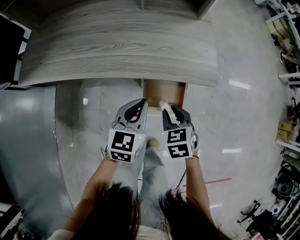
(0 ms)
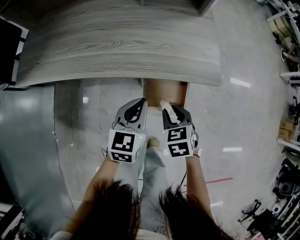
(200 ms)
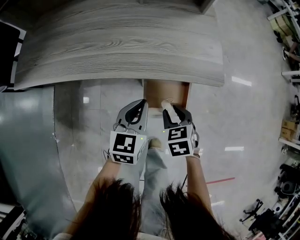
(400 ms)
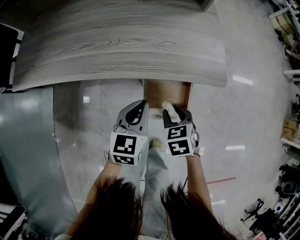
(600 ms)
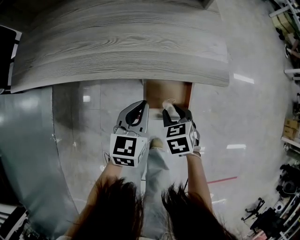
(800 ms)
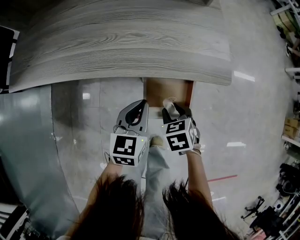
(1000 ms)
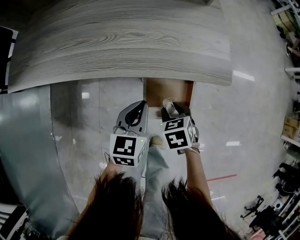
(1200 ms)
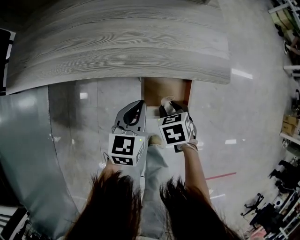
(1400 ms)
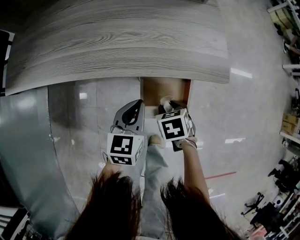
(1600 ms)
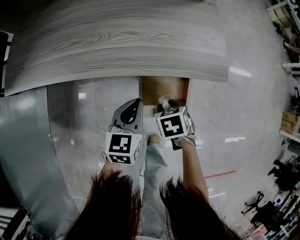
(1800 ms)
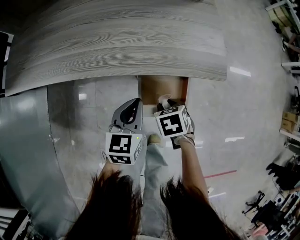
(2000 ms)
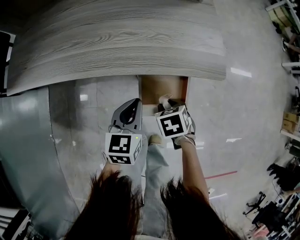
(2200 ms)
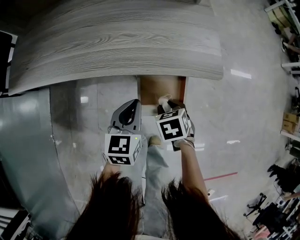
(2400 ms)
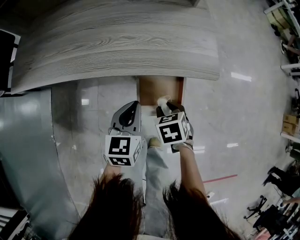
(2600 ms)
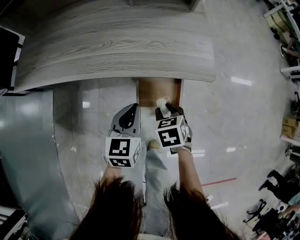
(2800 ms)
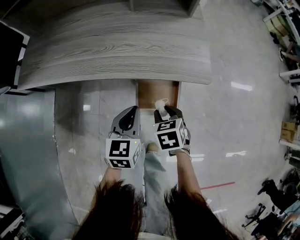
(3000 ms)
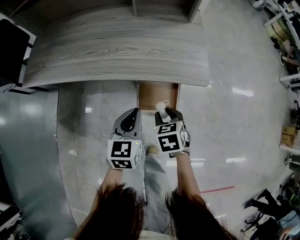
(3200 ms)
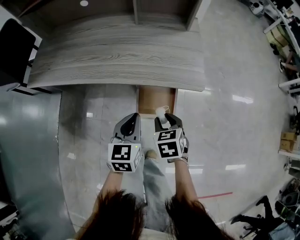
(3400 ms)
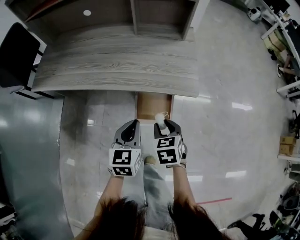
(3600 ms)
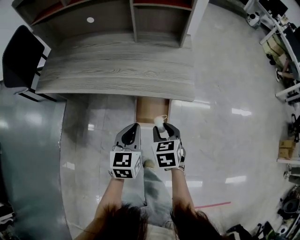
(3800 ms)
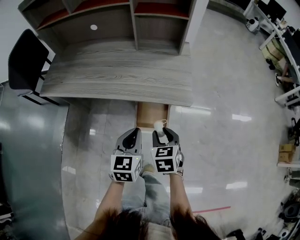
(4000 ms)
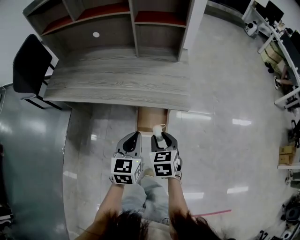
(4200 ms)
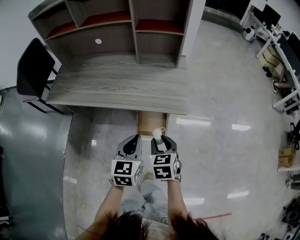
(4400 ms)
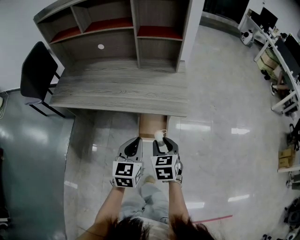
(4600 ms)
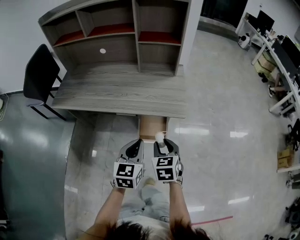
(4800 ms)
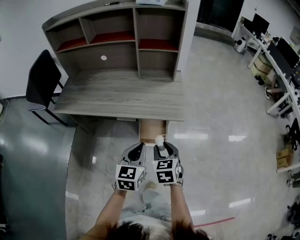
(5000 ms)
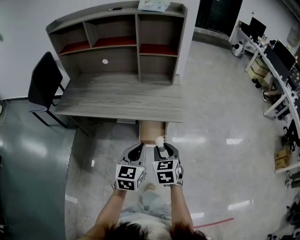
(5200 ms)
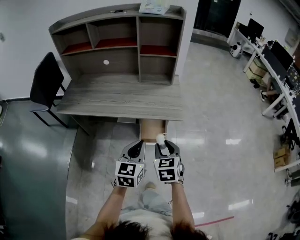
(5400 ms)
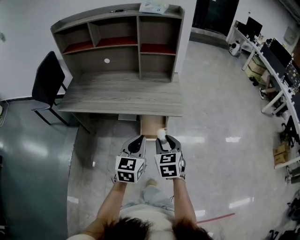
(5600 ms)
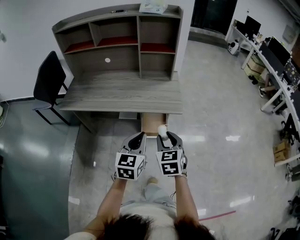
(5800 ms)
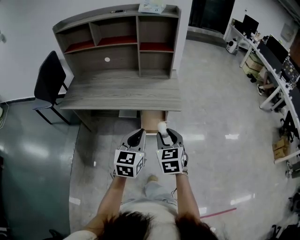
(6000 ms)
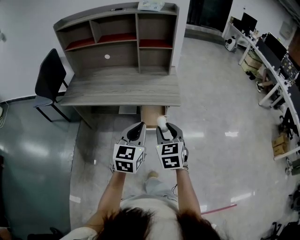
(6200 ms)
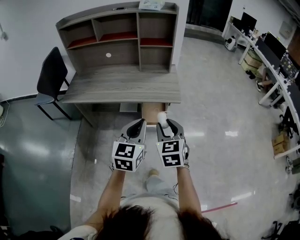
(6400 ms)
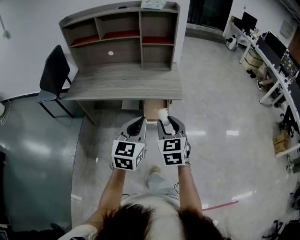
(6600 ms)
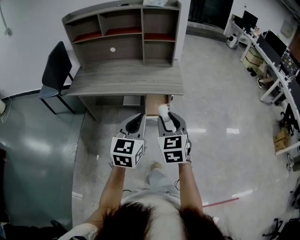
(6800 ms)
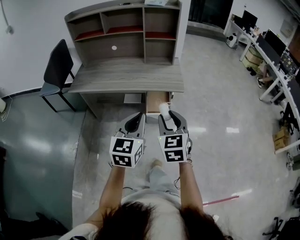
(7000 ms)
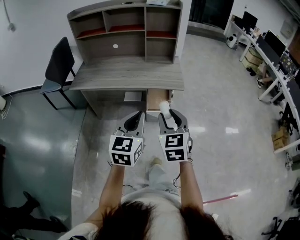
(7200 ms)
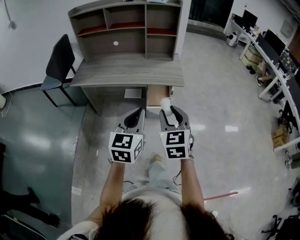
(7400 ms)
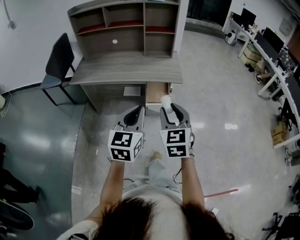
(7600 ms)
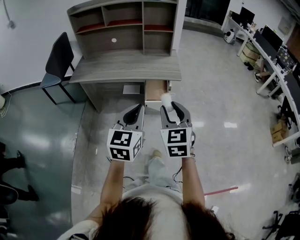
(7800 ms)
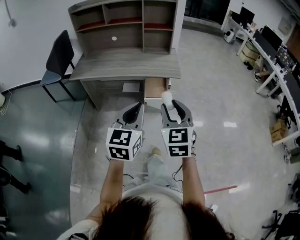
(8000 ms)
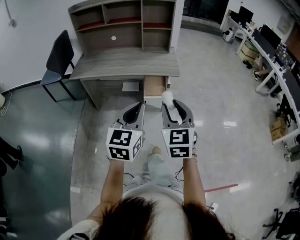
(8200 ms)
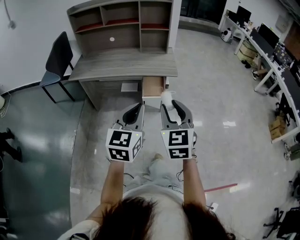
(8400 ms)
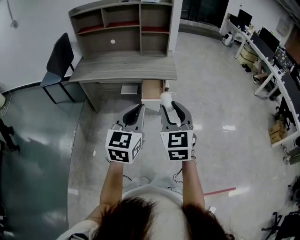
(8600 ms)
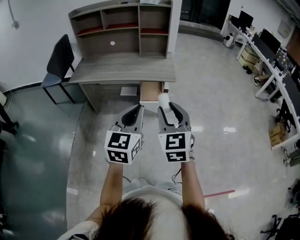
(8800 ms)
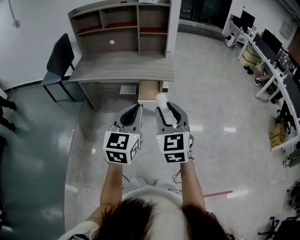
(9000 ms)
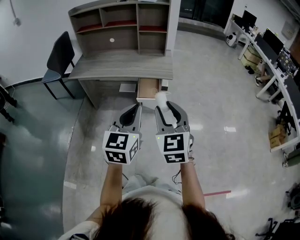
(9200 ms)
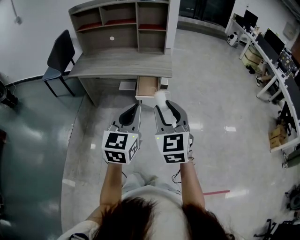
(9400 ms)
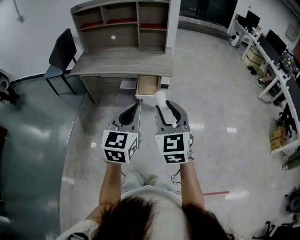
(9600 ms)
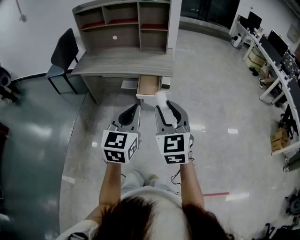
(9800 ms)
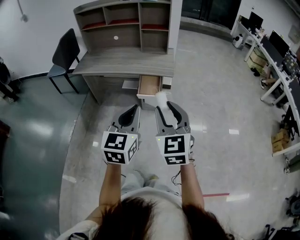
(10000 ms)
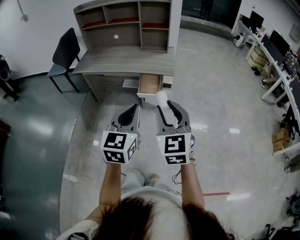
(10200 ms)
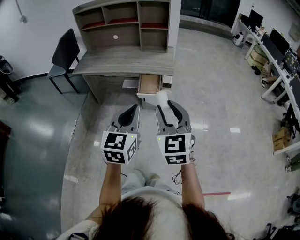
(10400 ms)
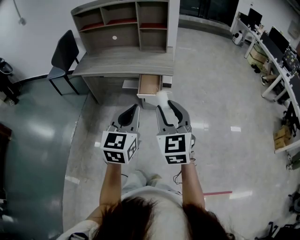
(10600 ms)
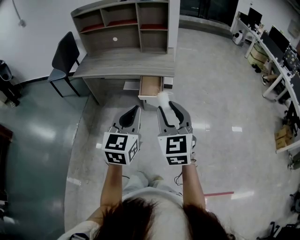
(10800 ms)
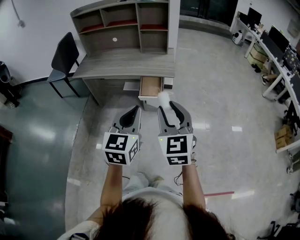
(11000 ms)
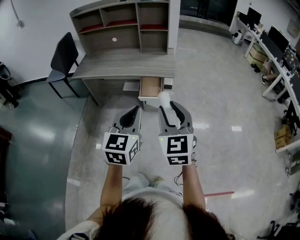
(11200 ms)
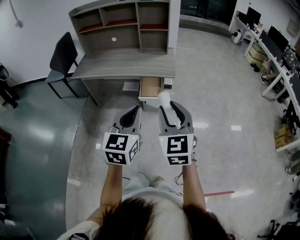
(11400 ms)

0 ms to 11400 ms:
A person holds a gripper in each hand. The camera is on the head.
0 ms to 1400 ms: The two grippers go approximately 10 cm downward.
1400 ms to 2800 ms: The right gripper changes place by roughly 5 cm.
2800 ms to 4200 ms: The left gripper shifts some 15 cm upward and backward. Meanwhile the right gripper travels upward by some 15 cm.
4200 ms to 5600 ms: The two grippers go some 15 cm upward and backward.
5600 ms to 7200 ms: Both grippers move backward and upward, roughly 20 cm.
7200 ms to 8600 ms: Both grippers move backward, approximately 10 cm.
8600 ms to 10000 ms: Both grippers travel together to the right, some 10 cm.
10000 ms to 11400 ms: There are only small adjustments of the grippers.

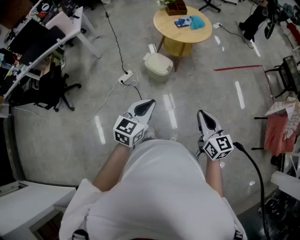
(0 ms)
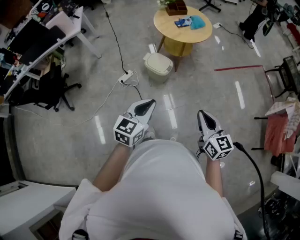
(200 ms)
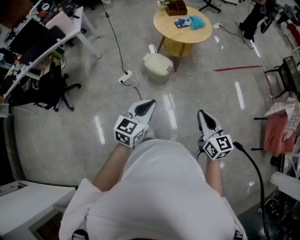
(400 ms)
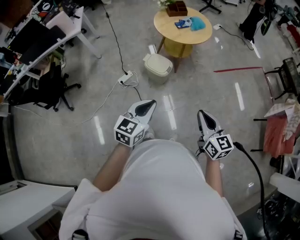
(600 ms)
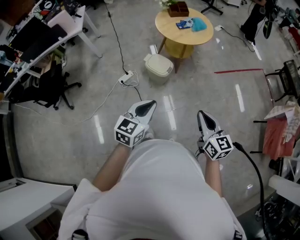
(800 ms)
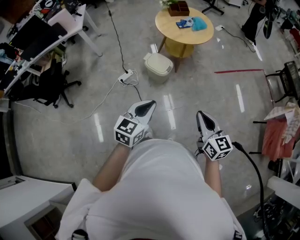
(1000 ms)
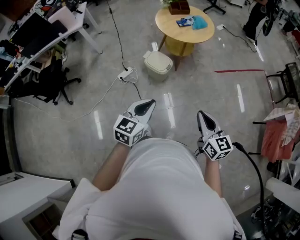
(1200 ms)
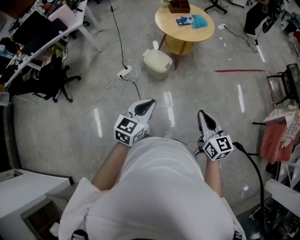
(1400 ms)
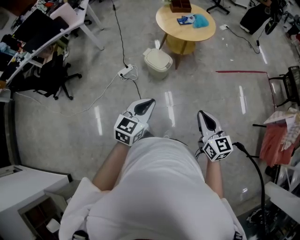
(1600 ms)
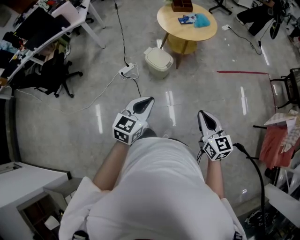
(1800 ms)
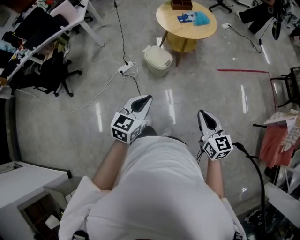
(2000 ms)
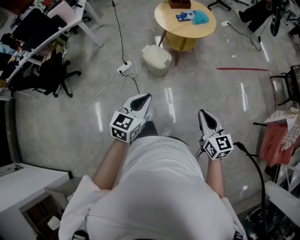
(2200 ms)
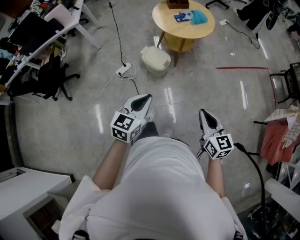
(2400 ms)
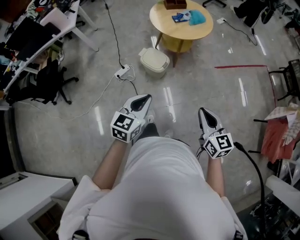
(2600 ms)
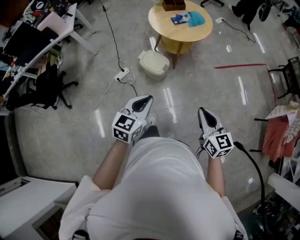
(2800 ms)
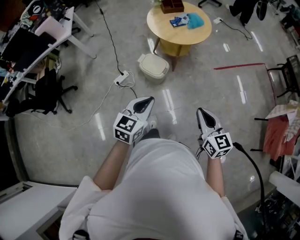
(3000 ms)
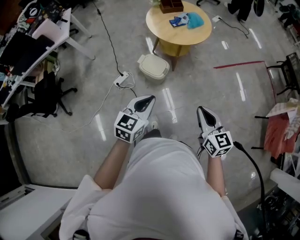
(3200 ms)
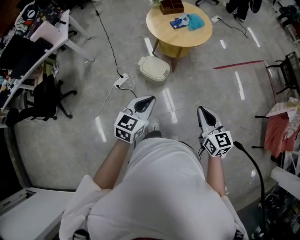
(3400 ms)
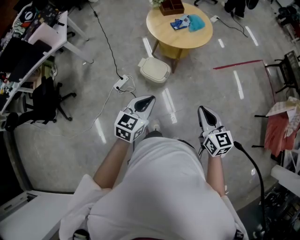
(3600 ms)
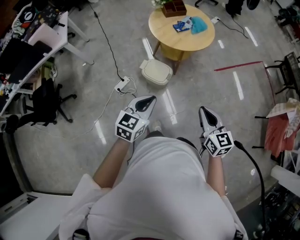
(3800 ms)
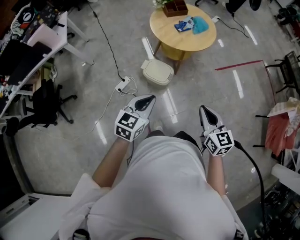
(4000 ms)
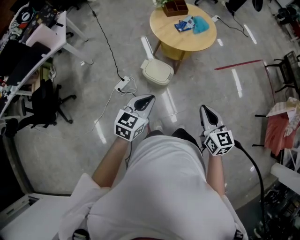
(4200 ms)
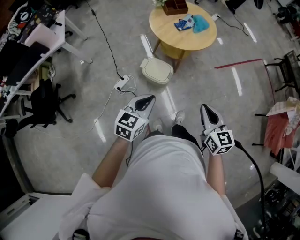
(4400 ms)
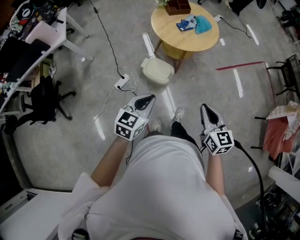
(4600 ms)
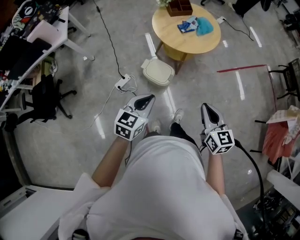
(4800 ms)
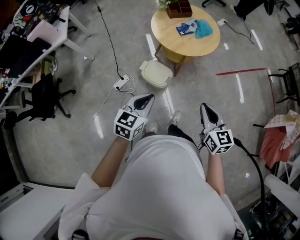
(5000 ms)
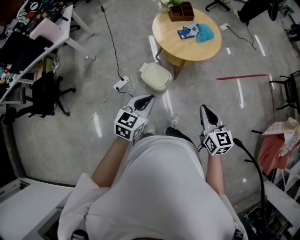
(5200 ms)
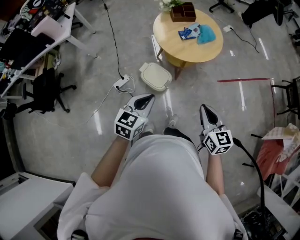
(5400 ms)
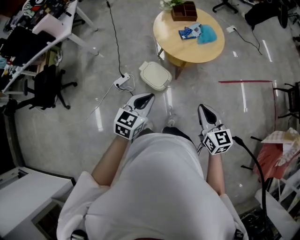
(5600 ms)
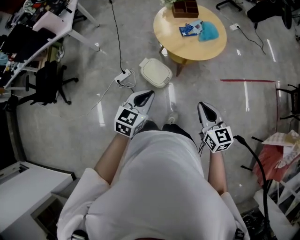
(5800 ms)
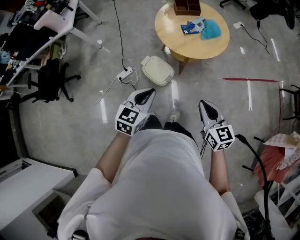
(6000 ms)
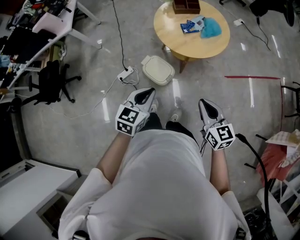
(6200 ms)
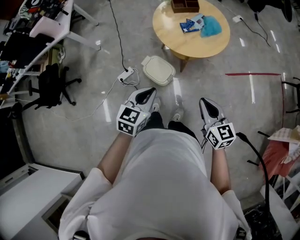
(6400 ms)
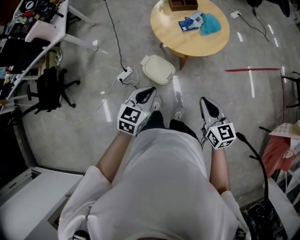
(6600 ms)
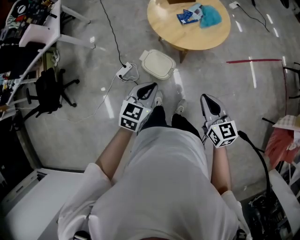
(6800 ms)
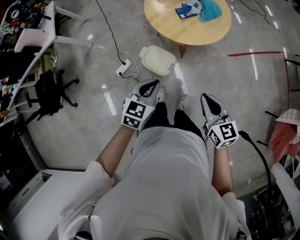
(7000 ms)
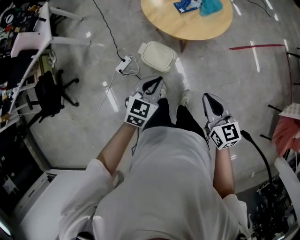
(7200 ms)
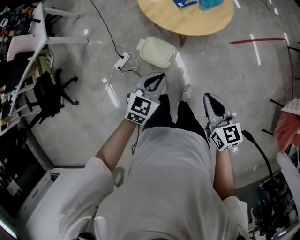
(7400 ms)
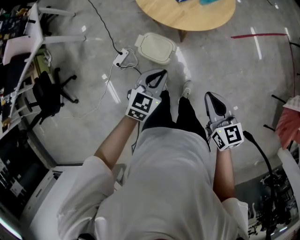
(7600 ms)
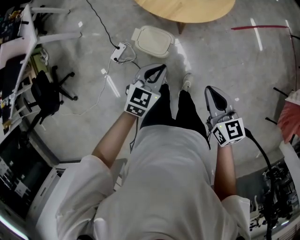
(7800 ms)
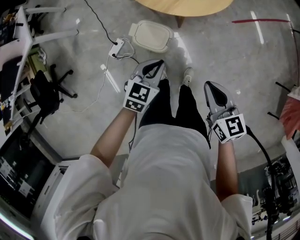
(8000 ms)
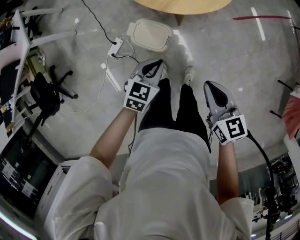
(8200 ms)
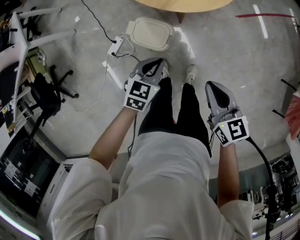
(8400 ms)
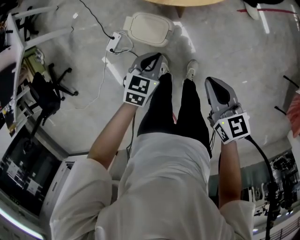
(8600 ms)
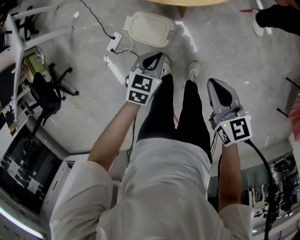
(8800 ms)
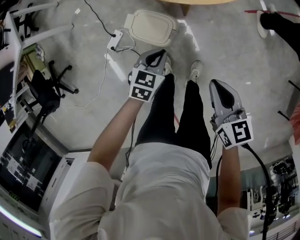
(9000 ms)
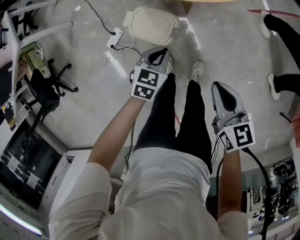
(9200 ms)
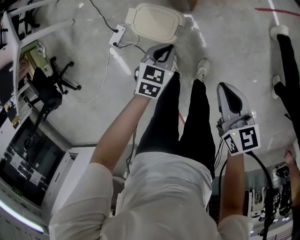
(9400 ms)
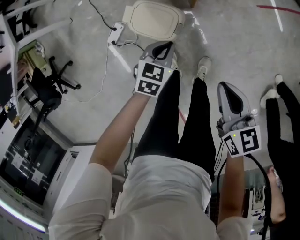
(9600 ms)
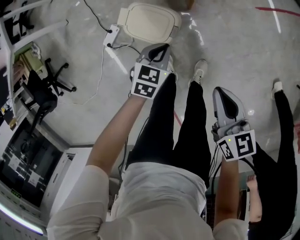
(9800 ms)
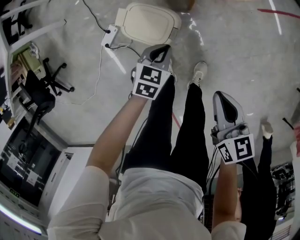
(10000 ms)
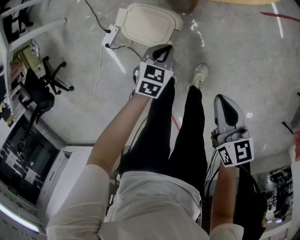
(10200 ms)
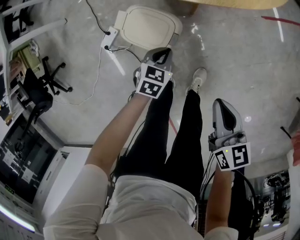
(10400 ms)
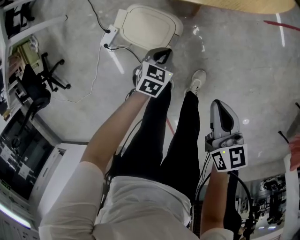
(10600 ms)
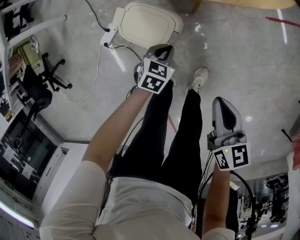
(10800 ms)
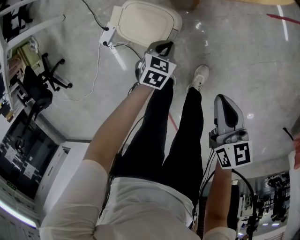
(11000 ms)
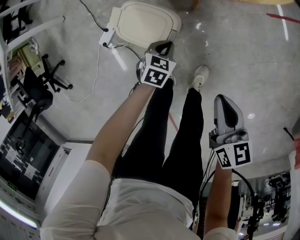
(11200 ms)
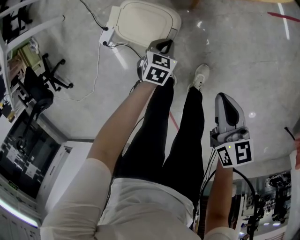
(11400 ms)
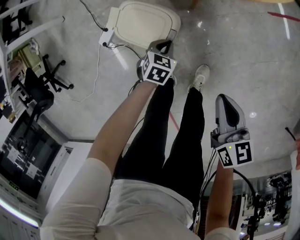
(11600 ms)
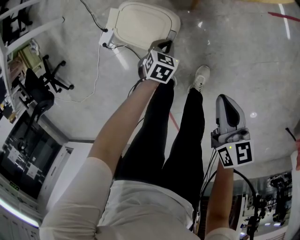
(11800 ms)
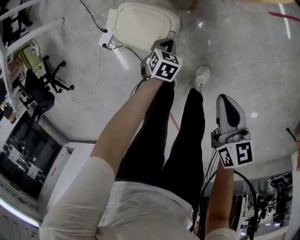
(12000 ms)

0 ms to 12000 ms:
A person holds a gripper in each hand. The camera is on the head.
0 ms to 1600 ms: The two grippers go some 5 cm to the right.
1600 ms to 3000 ms: Both grippers travel together forward, some 10 cm.
3000 ms to 4400 ms: The two grippers go roughly 15 cm to the left and forward.
4400 ms to 6000 ms: Both grippers move forward and to the right, about 15 cm.
6000 ms to 7600 ms: The right gripper shifts roughly 10 cm downward; the left gripper shifts about 15 cm downward and forward, and turns by some 20 degrees.
7600 ms to 9000 ms: Both grippers move downward, about 20 cm.
9000 ms to 10400 ms: Both grippers travel together downward, some 15 cm.
10400 ms to 12000 ms: The left gripper heads downward, covering approximately 10 cm. Meanwhile the right gripper goes roughly 5 cm downward.

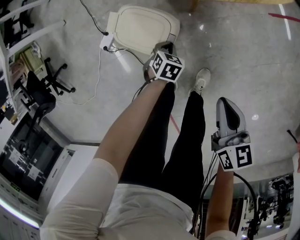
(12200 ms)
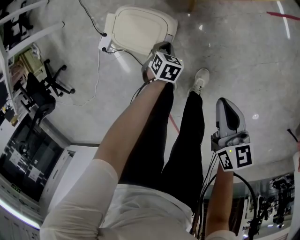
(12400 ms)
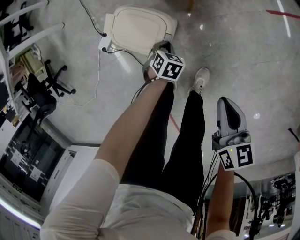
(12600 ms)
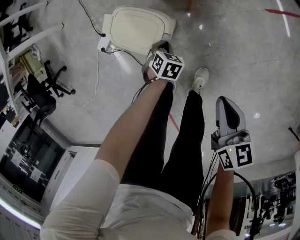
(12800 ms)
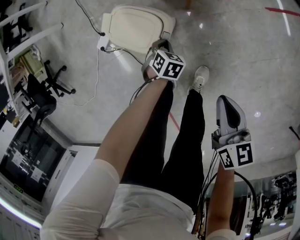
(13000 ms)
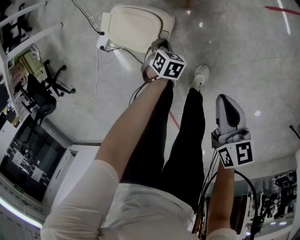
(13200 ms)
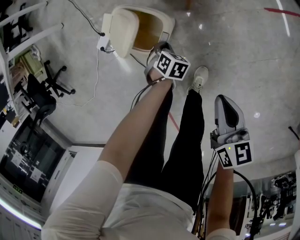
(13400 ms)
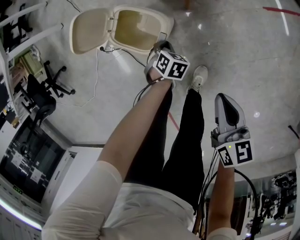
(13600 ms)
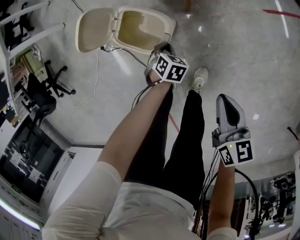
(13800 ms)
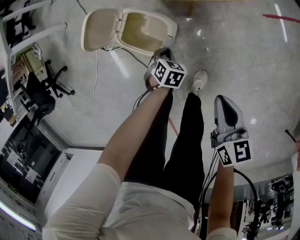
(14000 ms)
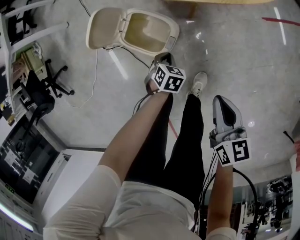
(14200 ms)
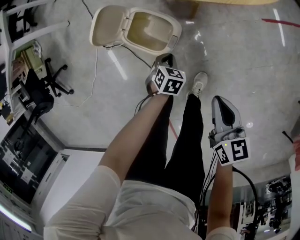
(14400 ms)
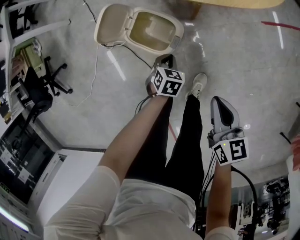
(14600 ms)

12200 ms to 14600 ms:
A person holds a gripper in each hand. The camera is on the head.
12200 ms to 13400 ms: The grippers move only a little.
13400 ms to 14600 ms: The left gripper moves upward, approximately 10 cm, while the right gripper changes place by some 5 cm.
